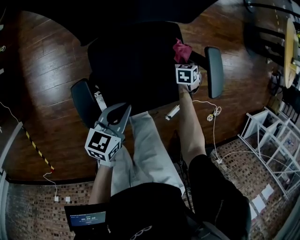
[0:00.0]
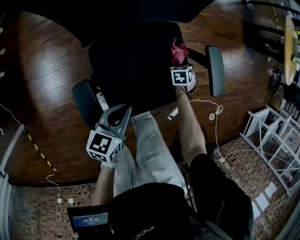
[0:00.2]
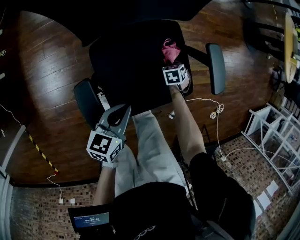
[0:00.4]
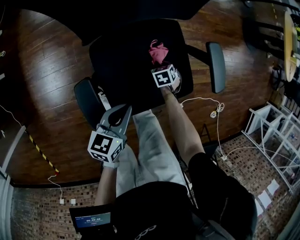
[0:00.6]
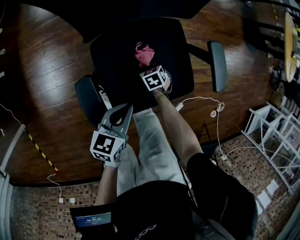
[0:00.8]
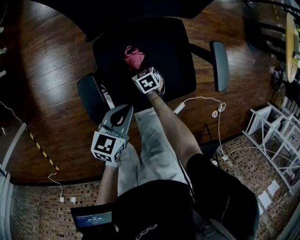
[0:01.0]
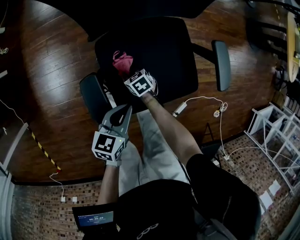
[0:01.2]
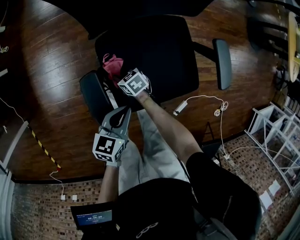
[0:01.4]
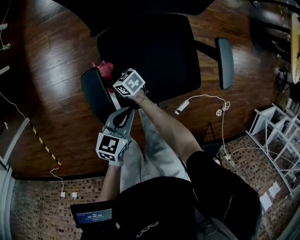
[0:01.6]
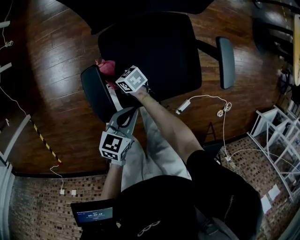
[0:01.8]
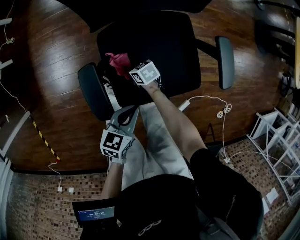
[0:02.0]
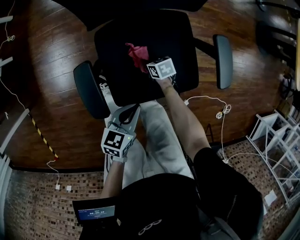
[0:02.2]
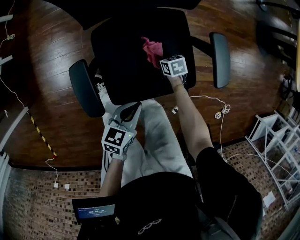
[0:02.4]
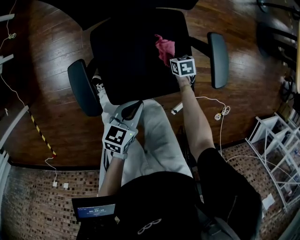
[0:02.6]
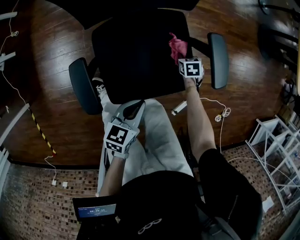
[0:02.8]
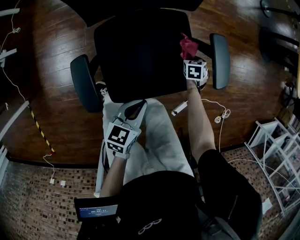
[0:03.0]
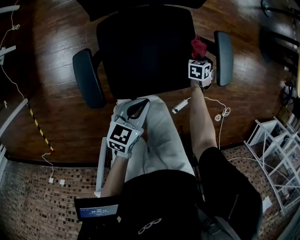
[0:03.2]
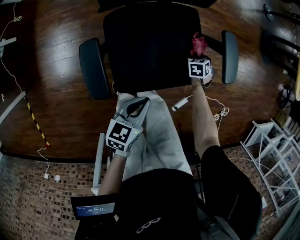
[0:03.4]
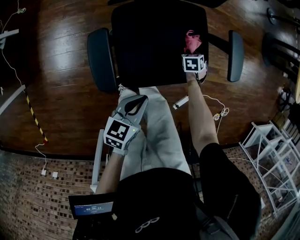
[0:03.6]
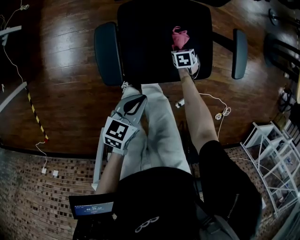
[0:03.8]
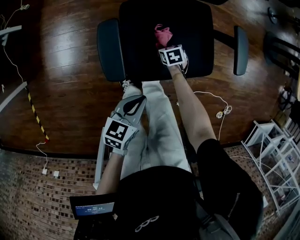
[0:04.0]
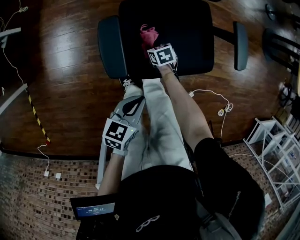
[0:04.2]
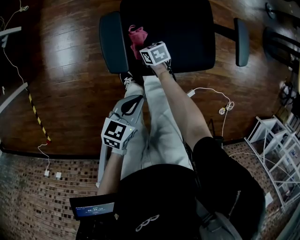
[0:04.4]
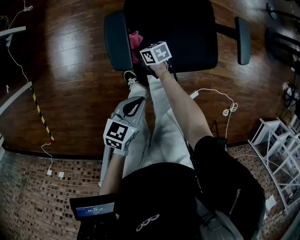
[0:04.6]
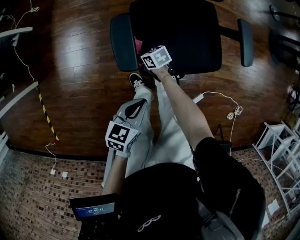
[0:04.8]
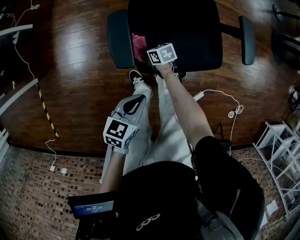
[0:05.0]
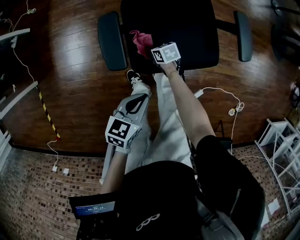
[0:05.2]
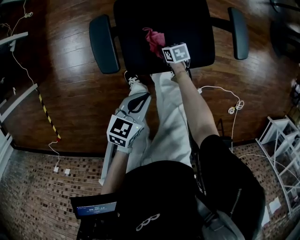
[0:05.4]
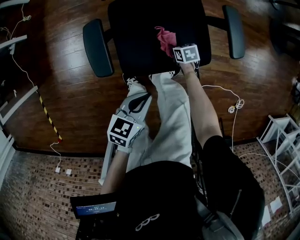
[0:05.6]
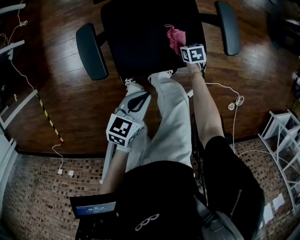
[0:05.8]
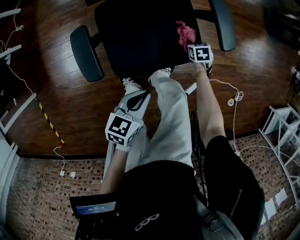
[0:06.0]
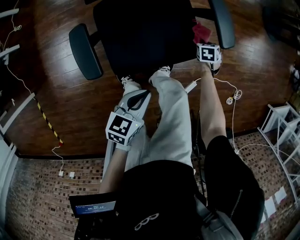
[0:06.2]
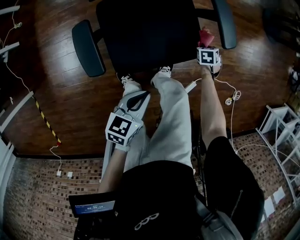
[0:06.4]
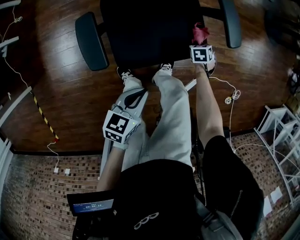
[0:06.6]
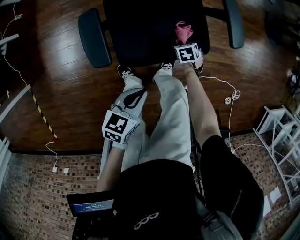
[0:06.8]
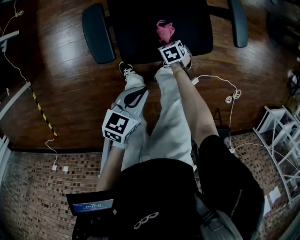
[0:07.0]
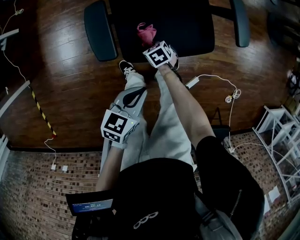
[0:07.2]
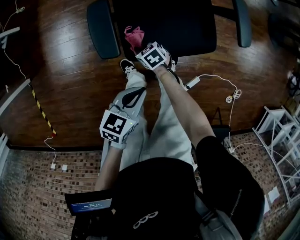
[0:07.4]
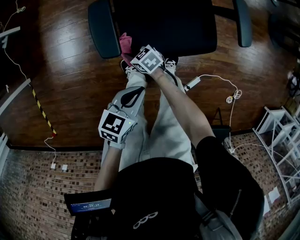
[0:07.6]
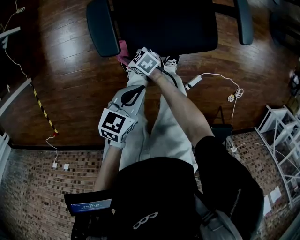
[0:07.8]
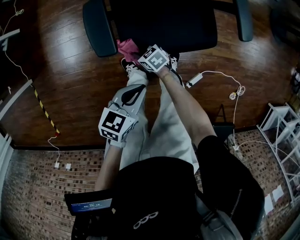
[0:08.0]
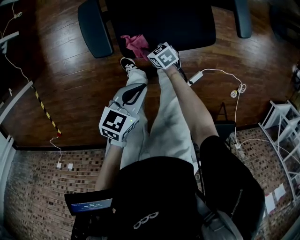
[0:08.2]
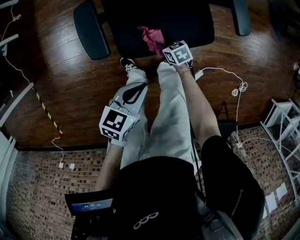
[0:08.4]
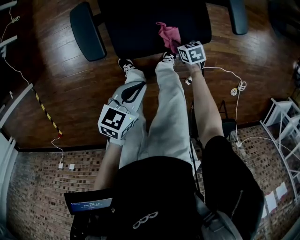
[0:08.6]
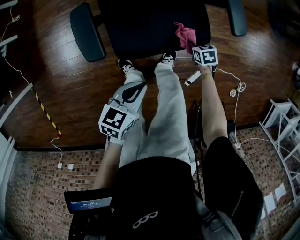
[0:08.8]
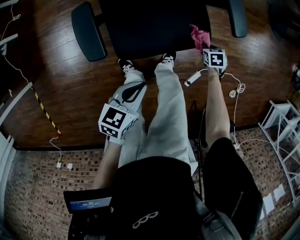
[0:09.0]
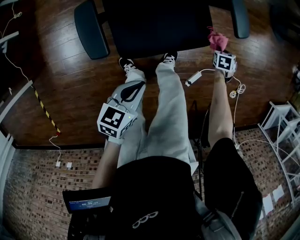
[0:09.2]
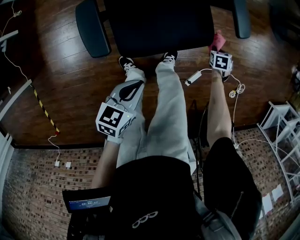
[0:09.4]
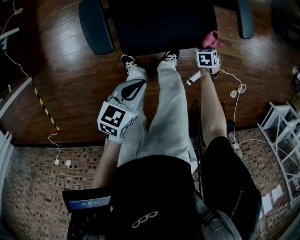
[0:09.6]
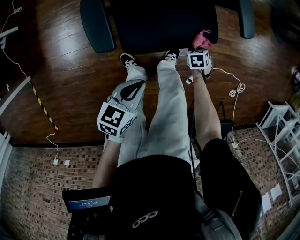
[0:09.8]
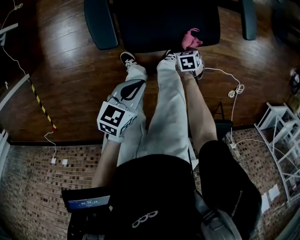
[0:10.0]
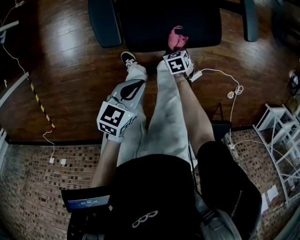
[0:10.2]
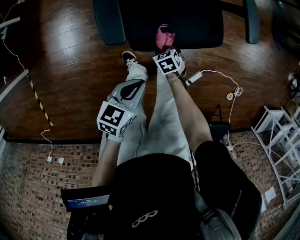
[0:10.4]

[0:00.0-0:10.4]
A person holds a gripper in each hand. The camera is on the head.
0:00.0 to 0:01.4: The left gripper changes place by roughly 5 cm, while the right gripper changes place by approximately 40 cm, and swivels about 50 degrees.
0:01.4 to 0:03.0: The left gripper ends up some 10 cm from where it was; the right gripper ends up some 40 cm from where it was, and rotates some 50 degrees.
0:03.0 to 0:04.4: The right gripper moves about 40 cm, and turns by approximately 40 degrees; the left gripper shifts by some 15 cm.
0:04.4 to 0:06.0: The right gripper moves roughly 35 cm, and changes its angle by some 30 degrees. The left gripper changes place by approximately 10 cm.
0:06.0 to 0:07.4: The right gripper ends up some 35 cm from where it was, and changes its angle by roughly 30 degrees; the left gripper moves about 10 cm.
0:07.4 to 0:09.0: The right gripper ends up approximately 40 cm from where it was, and rotates about 40 degrees.
0:09.0 to 0:10.4: The left gripper ends up roughly 5 cm from where it was. The right gripper moves about 30 cm, and turns by approximately 20 degrees.

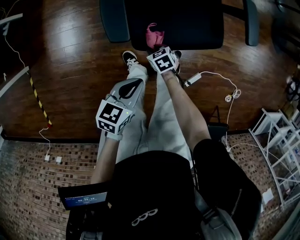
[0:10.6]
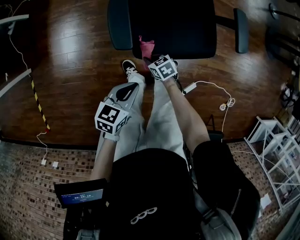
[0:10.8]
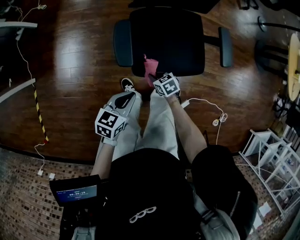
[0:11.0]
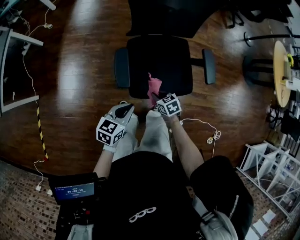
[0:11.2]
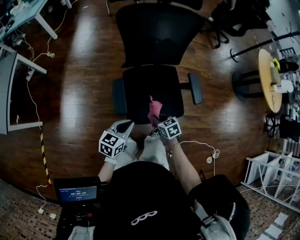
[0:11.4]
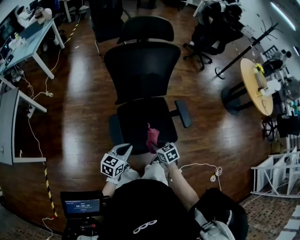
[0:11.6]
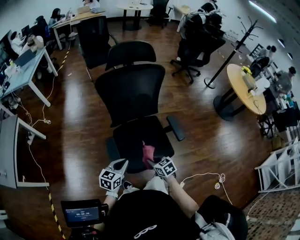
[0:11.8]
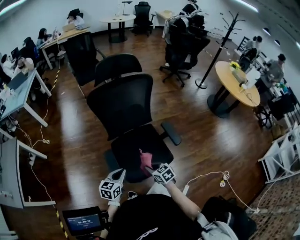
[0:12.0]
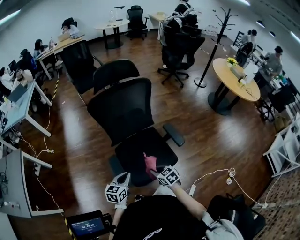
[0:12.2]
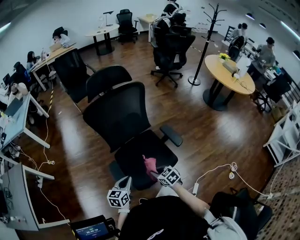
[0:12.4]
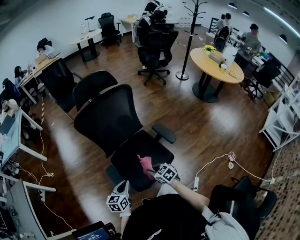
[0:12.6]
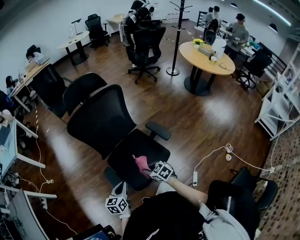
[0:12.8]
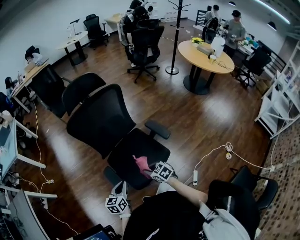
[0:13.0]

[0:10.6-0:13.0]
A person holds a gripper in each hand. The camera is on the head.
0:10.6 to 0:11.8: The right gripper shifts about 30 cm upward, and rotates about 20 degrees. Meanwhile the left gripper moves upward, about 15 cm, and rotates some 20 degrees.
0:11.8 to 0:13.0: The grippers make only small movements.

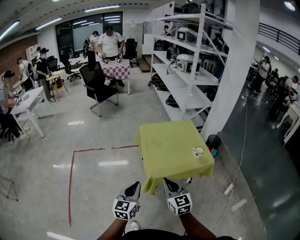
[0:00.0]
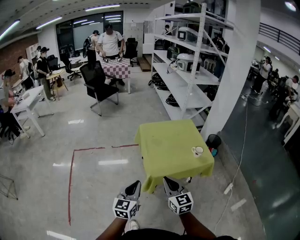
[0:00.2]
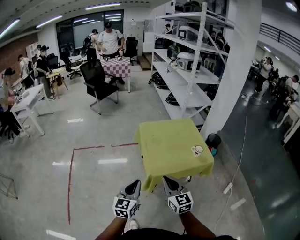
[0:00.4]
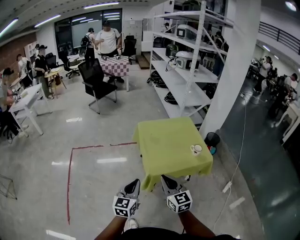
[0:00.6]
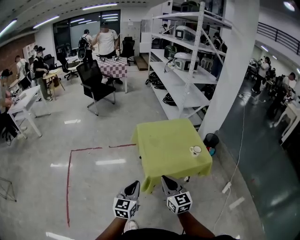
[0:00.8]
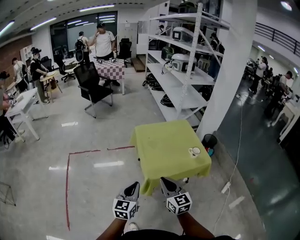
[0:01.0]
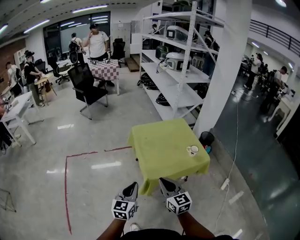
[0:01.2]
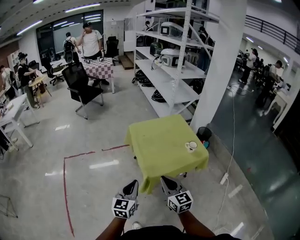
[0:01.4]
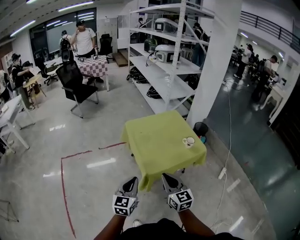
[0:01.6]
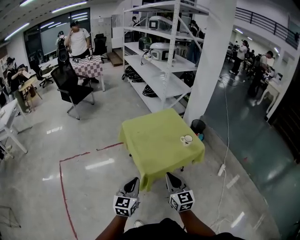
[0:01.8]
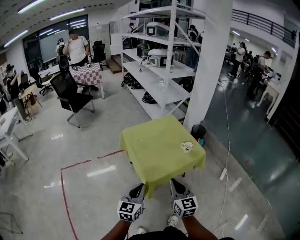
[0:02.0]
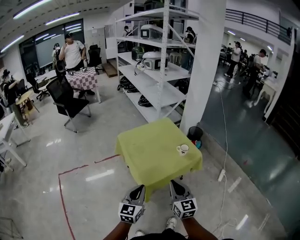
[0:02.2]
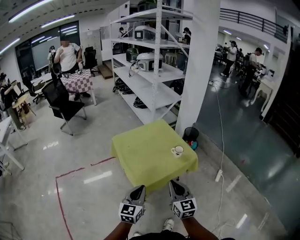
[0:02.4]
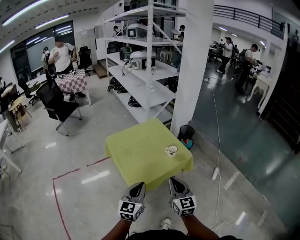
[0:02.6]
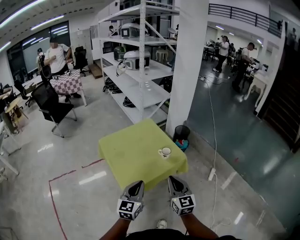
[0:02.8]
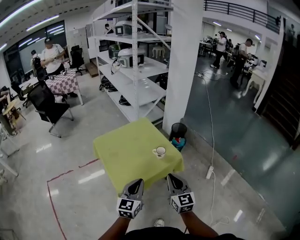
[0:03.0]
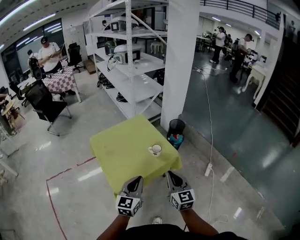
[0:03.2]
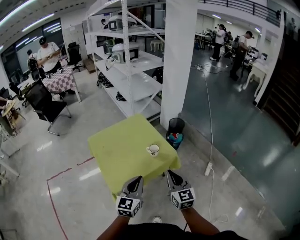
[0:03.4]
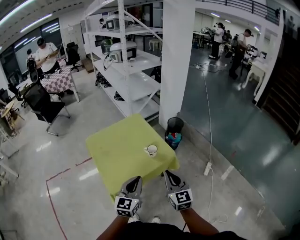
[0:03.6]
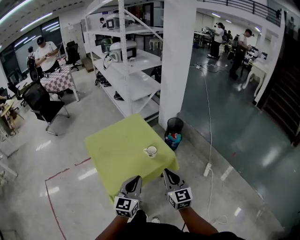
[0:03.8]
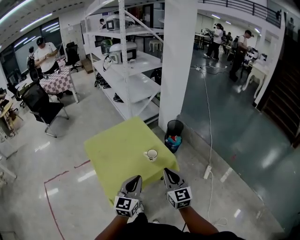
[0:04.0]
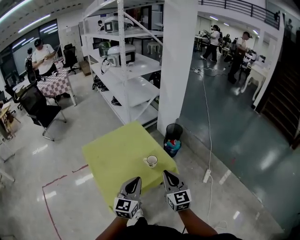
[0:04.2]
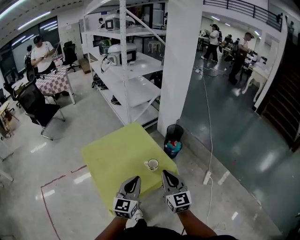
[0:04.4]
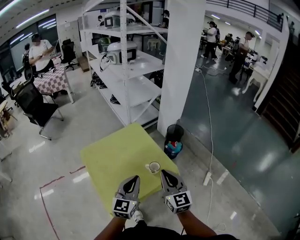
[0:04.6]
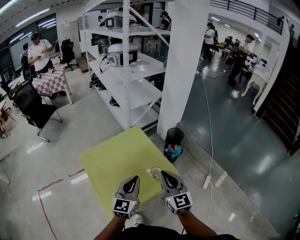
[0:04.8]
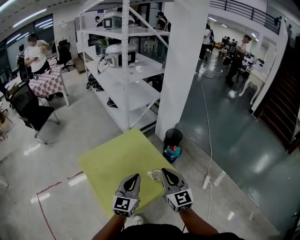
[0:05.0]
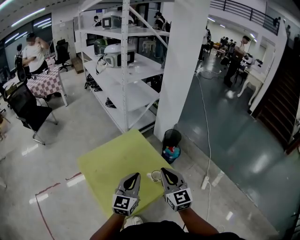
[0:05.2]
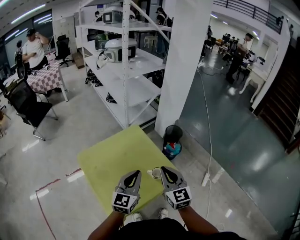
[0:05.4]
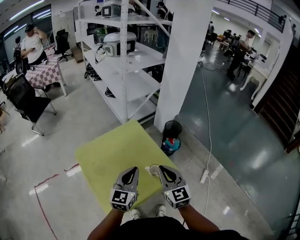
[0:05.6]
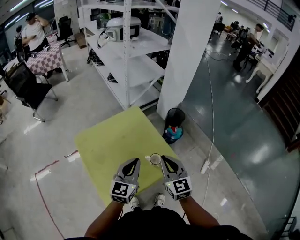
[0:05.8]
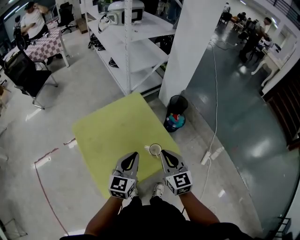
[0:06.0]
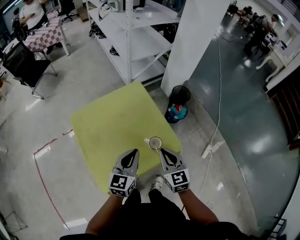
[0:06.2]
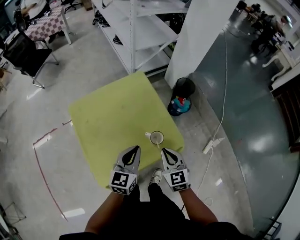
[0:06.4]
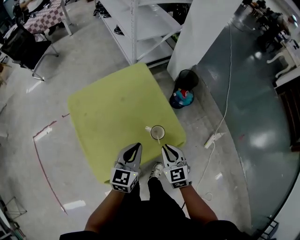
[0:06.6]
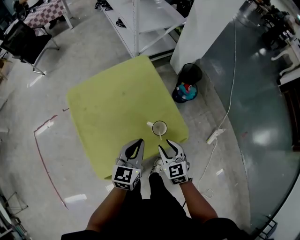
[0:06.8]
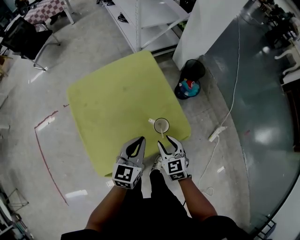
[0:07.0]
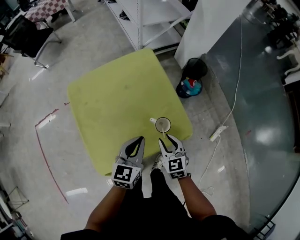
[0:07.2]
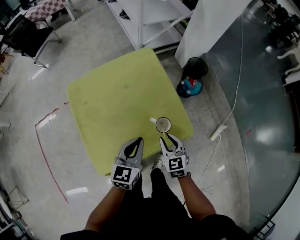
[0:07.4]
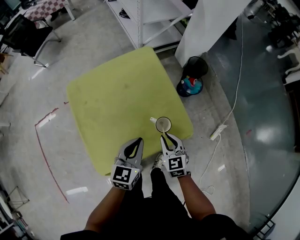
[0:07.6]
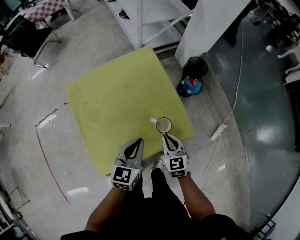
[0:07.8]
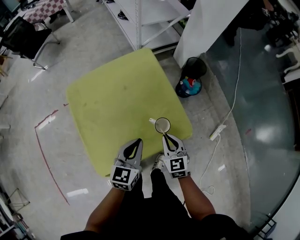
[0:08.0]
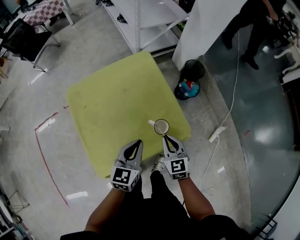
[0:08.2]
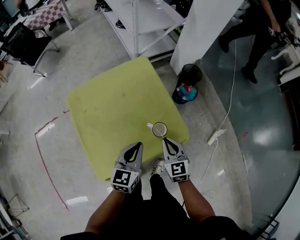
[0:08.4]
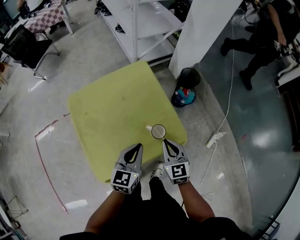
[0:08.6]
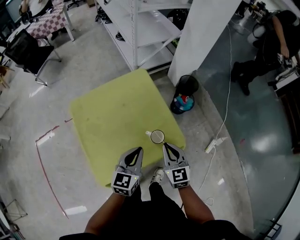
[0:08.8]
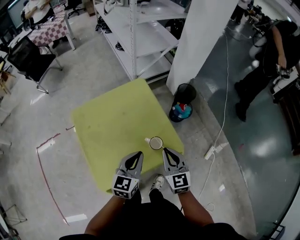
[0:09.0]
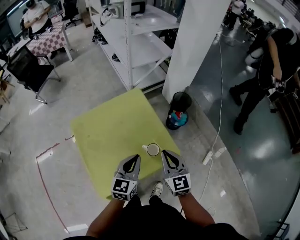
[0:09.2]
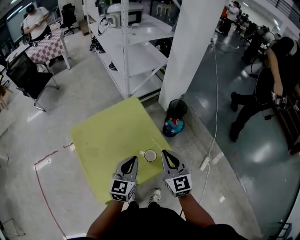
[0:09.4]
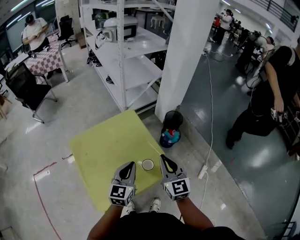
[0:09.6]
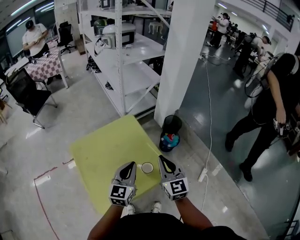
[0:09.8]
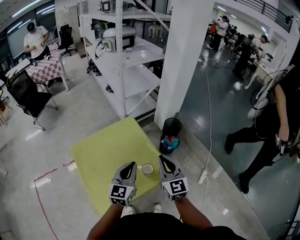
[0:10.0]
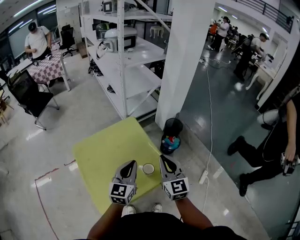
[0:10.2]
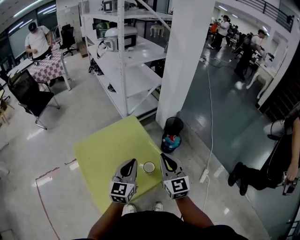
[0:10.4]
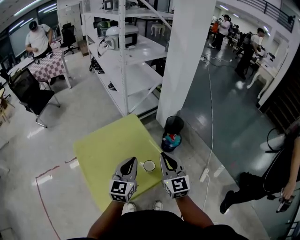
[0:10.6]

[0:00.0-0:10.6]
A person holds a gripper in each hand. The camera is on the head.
0:00.0 to 0:01.6: The grippers make only small movements.
0:01.6 to 0:03.0: The grippers both shift to the right and forward by roughly 25 cm.
0:03.0 to 0:04.6: Both grippers move forward, some 20 cm.
0:04.6 to 0:06.0: The two grippers go some 10 cm forward and downward.
0:06.0 to 0:07.6: The right gripper is displaced downward by roughly 20 cm. The left gripper travels downward by roughly 10 cm.
0:07.6 to 0:09.0: The right gripper moves upward, roughly 15 cm, while the left gripper travels upward by approximately 5 cm.
0:09.0 to 0:10.6: The grippers both shift upward by about 10 cm.
